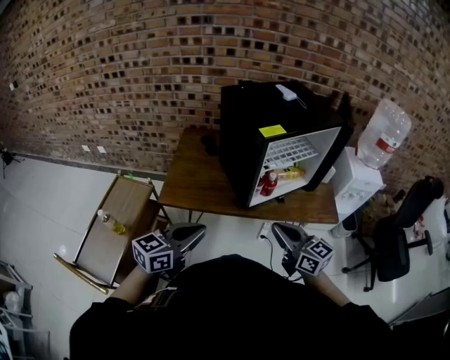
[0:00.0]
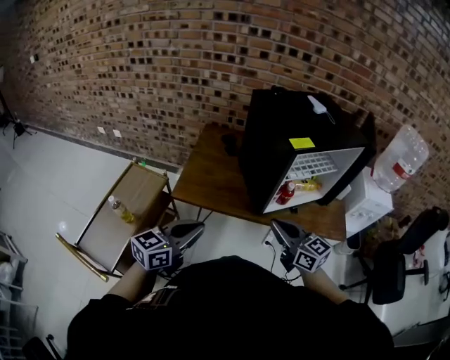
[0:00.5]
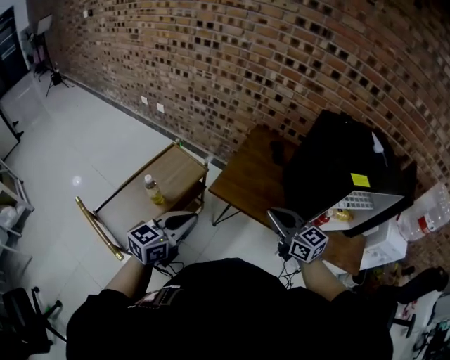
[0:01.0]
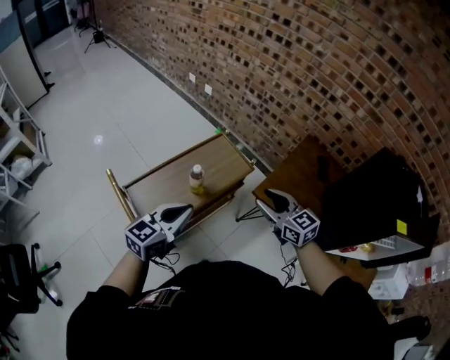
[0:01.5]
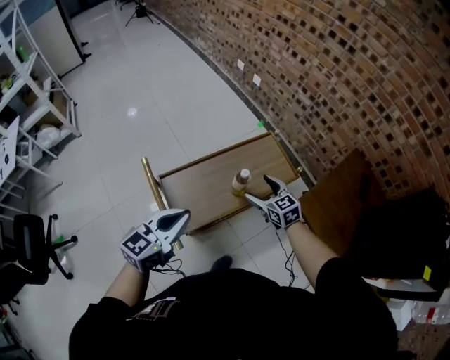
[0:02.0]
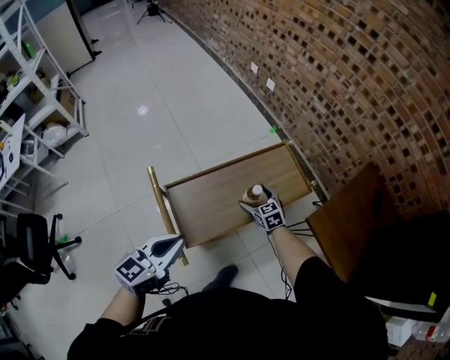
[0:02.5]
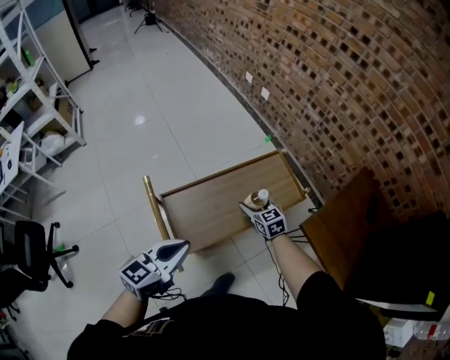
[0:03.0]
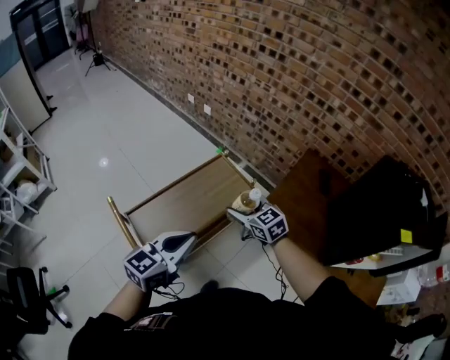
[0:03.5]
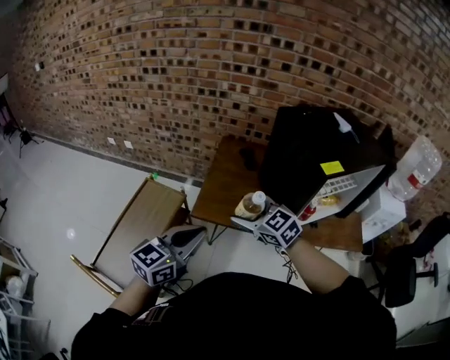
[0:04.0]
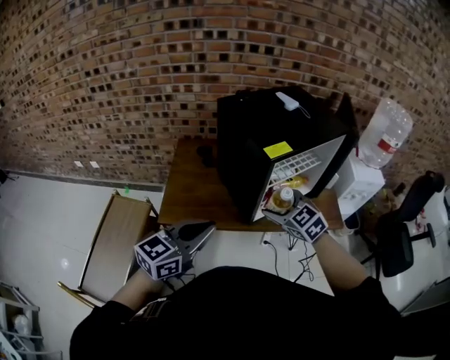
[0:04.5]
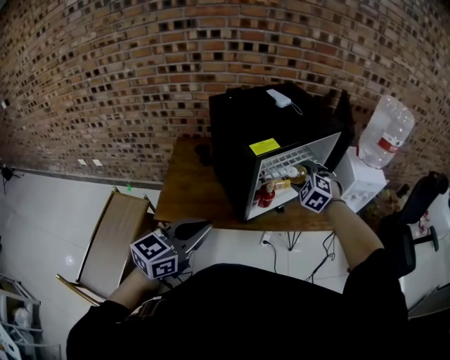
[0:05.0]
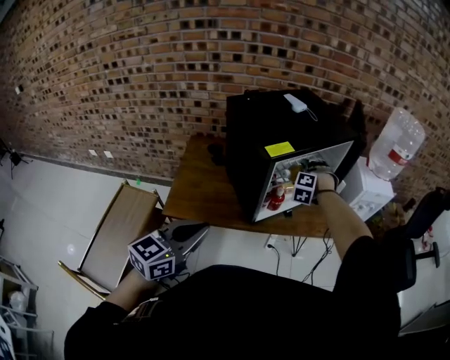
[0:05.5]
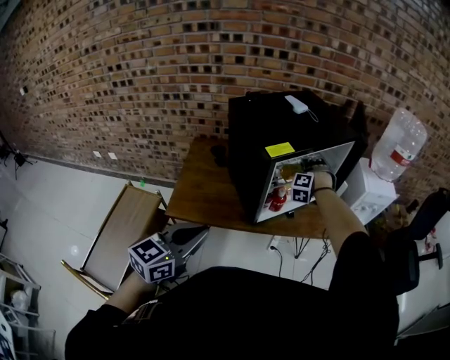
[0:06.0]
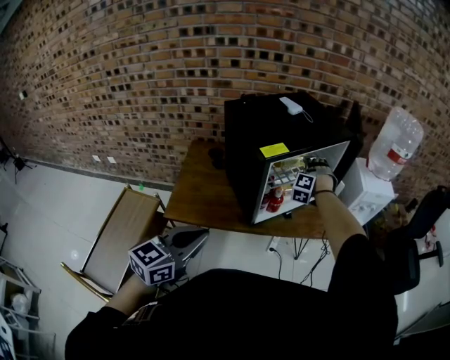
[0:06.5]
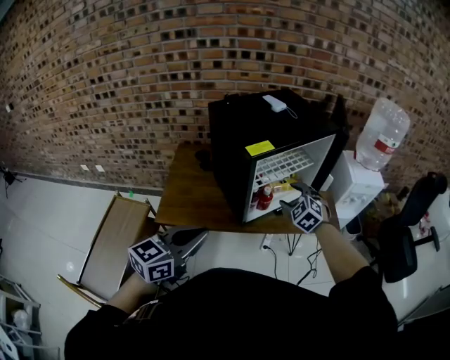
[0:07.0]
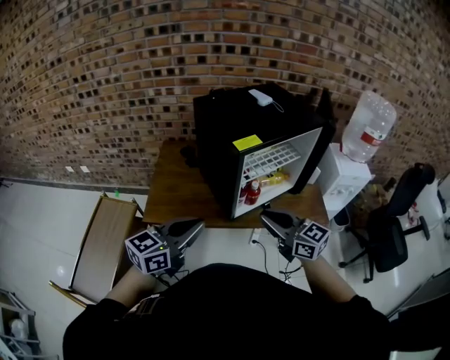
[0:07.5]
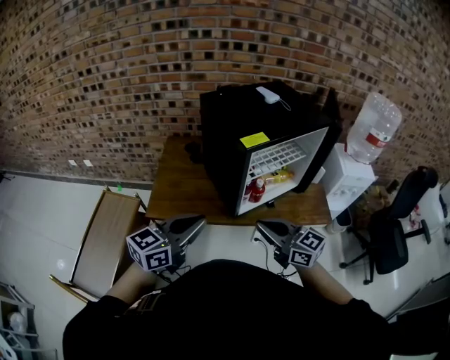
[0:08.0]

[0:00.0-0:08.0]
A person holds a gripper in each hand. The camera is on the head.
0:00.0 to 0:02.0: The two grippers travel together, some 60 cm. The left gripper swivels some 60 degrees; the right gripper swivels approximately 60 degrees, and opens.
0:02.0 to 0:04.0: Both grippers are carried roughly 40 cm. The left gripper changes its angle by roughly 50 degrees. Meanwhile the right gripper rotates approximately 30 degrees.
0:04.0 to 0:06.0: The left gripper shifts by approximately 20 cm, while the right gripper moves approximately 50 cm, and turns by about 90 degrees.
0:06.0 to 0:08.0: The right gripper shifts by roughly 35 cm, points its fingers about 40 degrees further upward, and closes.

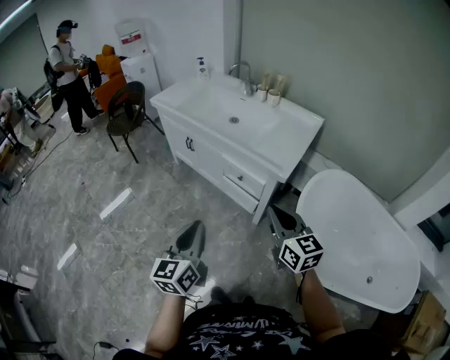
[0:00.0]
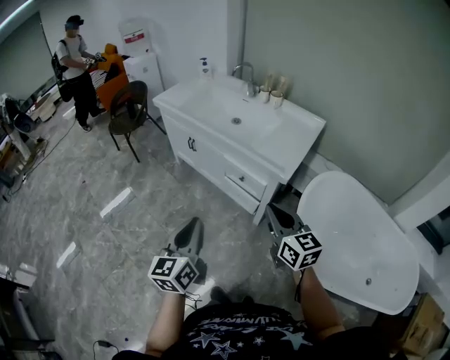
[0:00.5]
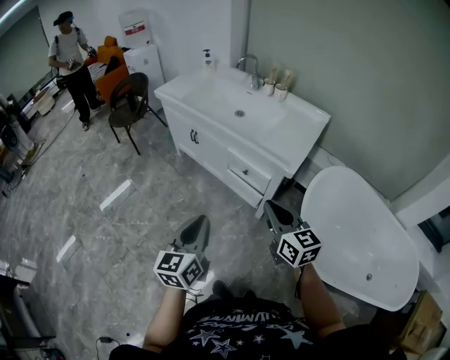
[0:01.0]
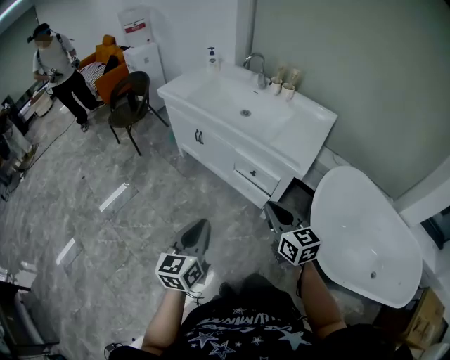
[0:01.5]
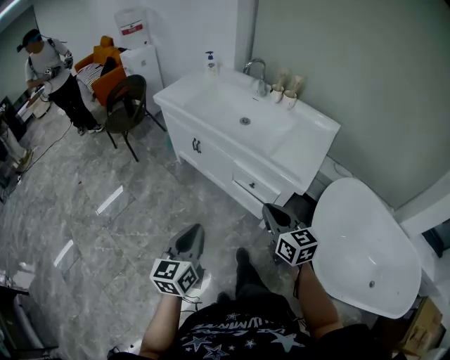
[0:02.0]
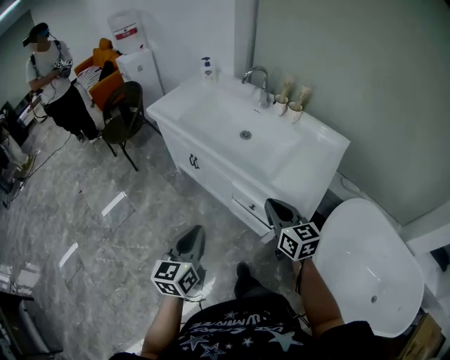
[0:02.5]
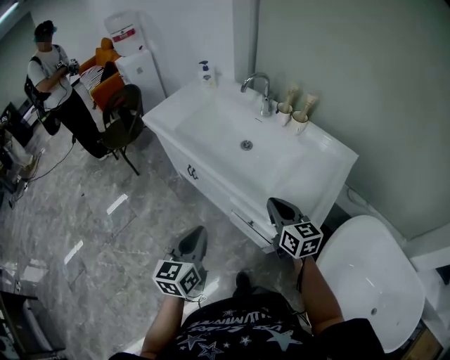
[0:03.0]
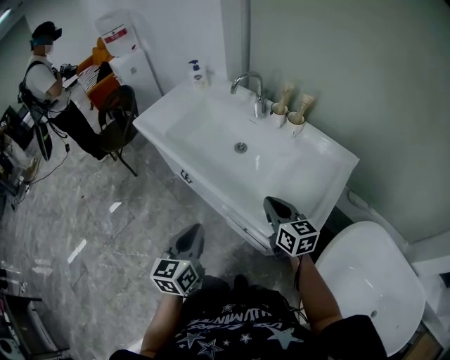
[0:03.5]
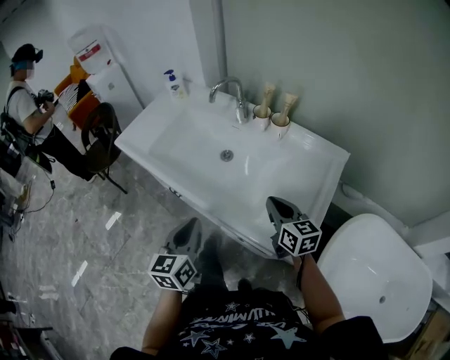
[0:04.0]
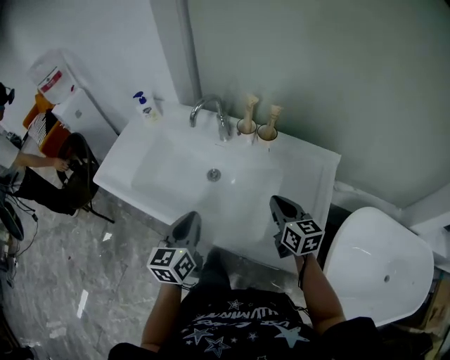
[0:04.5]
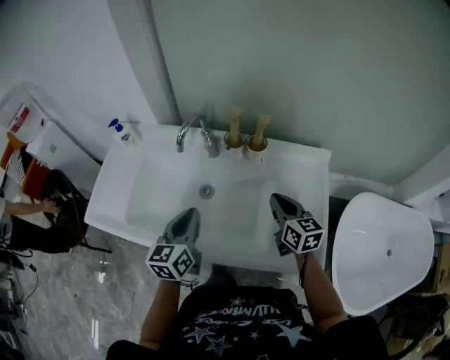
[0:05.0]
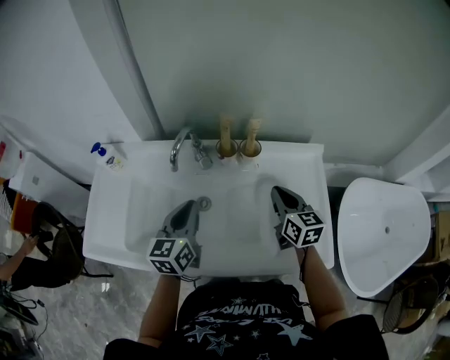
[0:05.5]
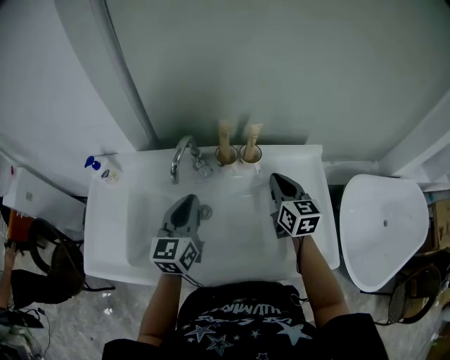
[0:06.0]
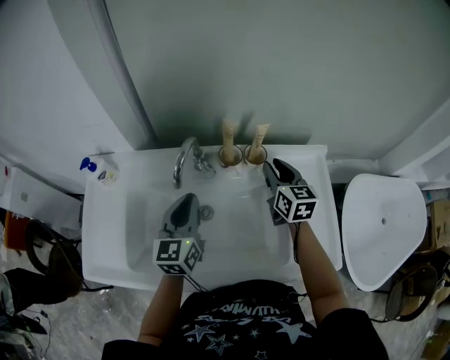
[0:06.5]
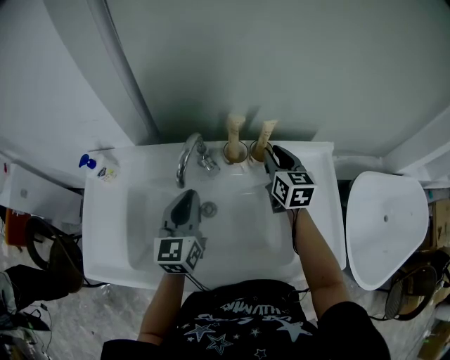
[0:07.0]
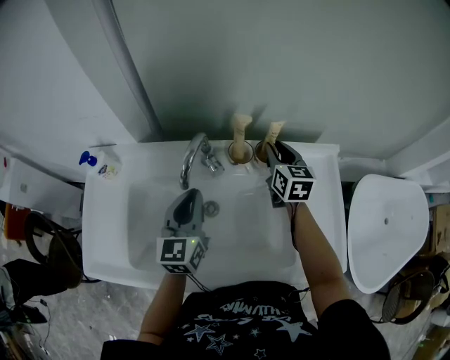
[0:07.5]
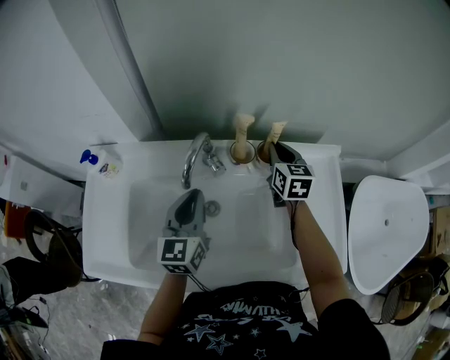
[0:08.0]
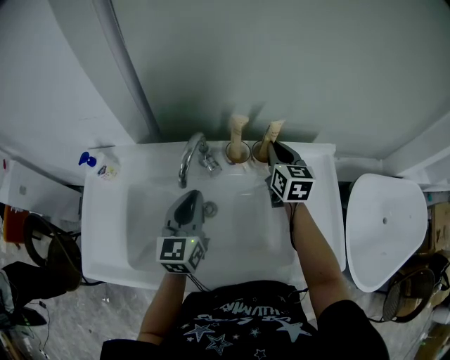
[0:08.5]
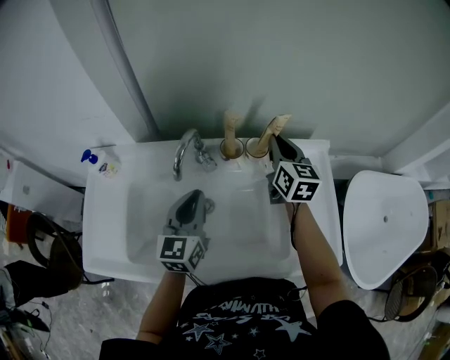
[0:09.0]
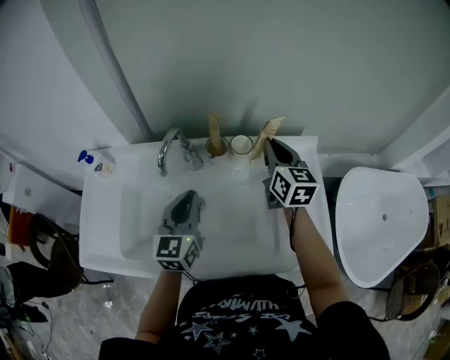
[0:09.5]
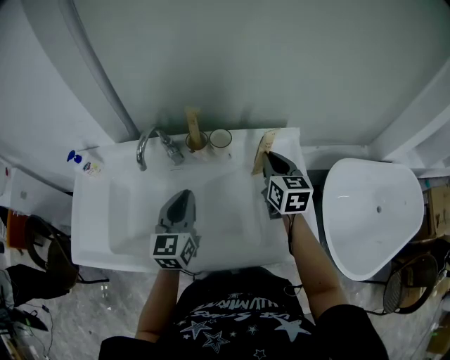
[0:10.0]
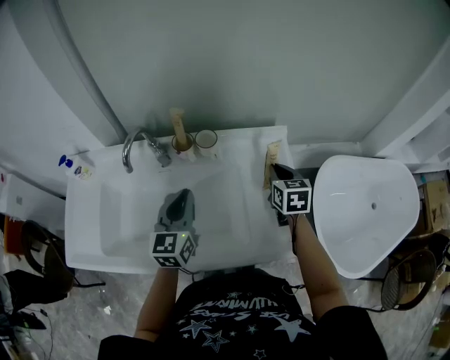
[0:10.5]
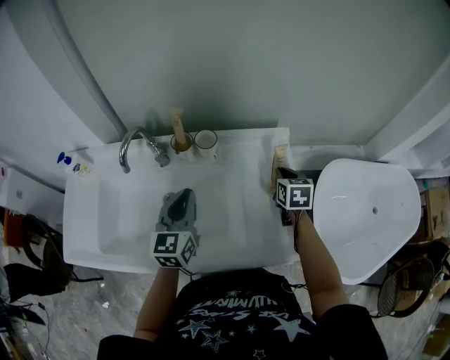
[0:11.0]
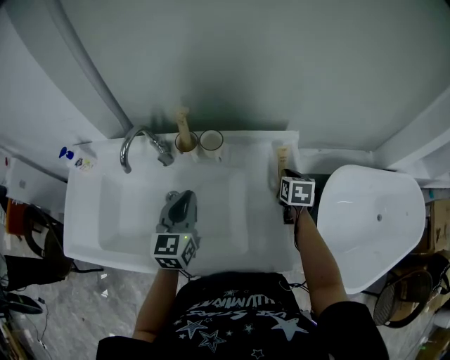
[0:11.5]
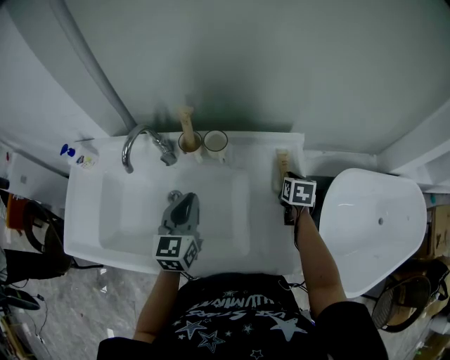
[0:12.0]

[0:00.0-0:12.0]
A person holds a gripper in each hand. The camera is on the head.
0:00.0 to 0:02.0: The right gripper heads forward, to the left and downward, covering about 15 cm. Meanwhile the left gripper travels forward and to the left by some 10 cm.
0:02.0 to 0:04.0: The left gripper heads forward, covering some 35 cm. The right gripper is displaced forward and to the right by some 35 cm.
0:04.0 to 0:06.0: The left gripper shifts by about 35 cm, and swivels about 40 degrees. Meanwhile the right gripper changes place by about 25 cm, and swivels some 40 degrees.
0:06.0 to 0:08.0: The left gripper changes place by some 5 cm. The right gripper shifts some 15 cm forward.
0:08.0 to 0:10.0: The right gripper heads to the right, backward and upward, covering about 20 cm; the left gripper travels to the right and backward by some 15 cm.
0:10.0 to 0:12.0: The right gripper heads downward and to the right, covering about 20 cm, and swivels about 30 degrees; the left gripper changes place by about 5 cm.

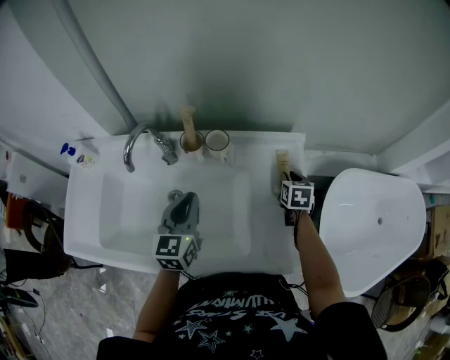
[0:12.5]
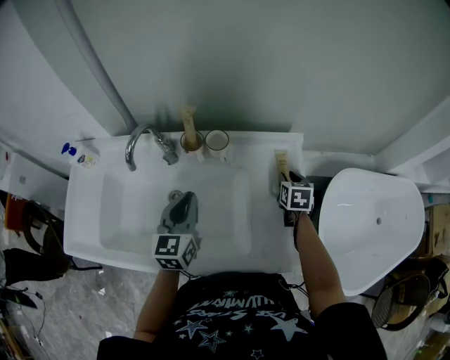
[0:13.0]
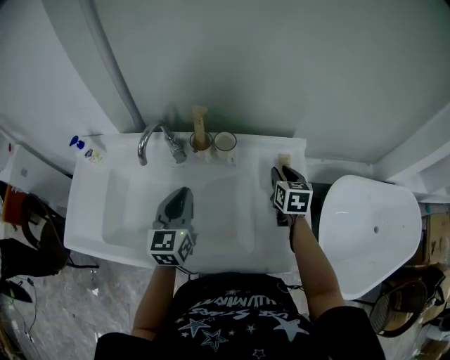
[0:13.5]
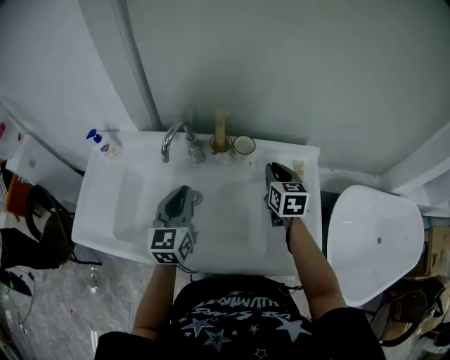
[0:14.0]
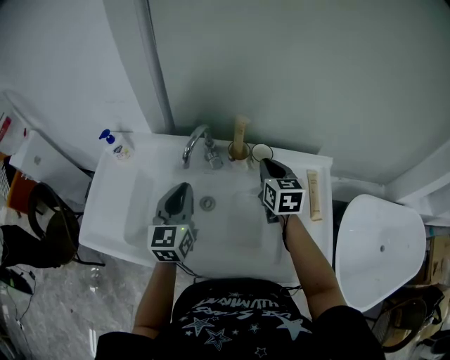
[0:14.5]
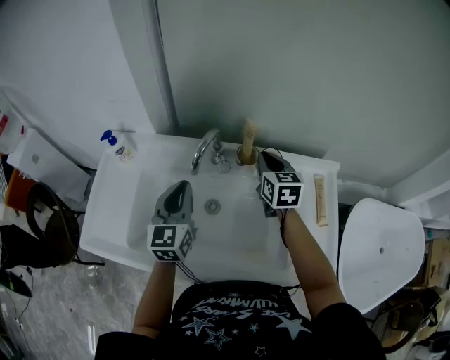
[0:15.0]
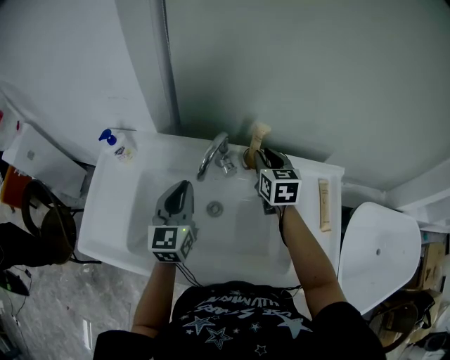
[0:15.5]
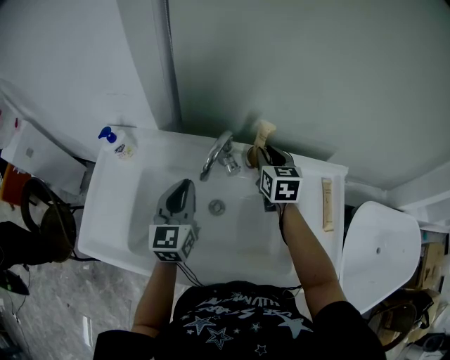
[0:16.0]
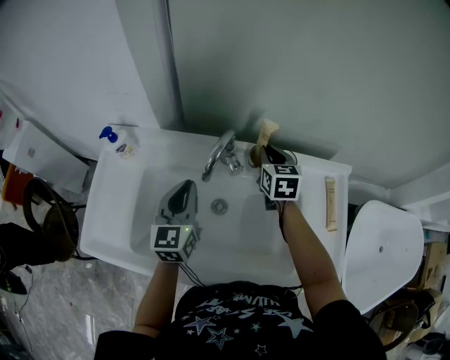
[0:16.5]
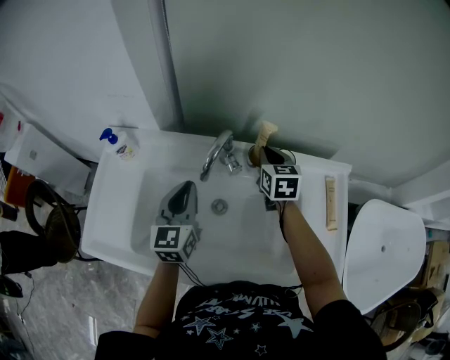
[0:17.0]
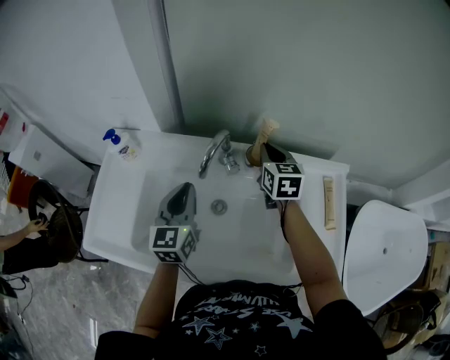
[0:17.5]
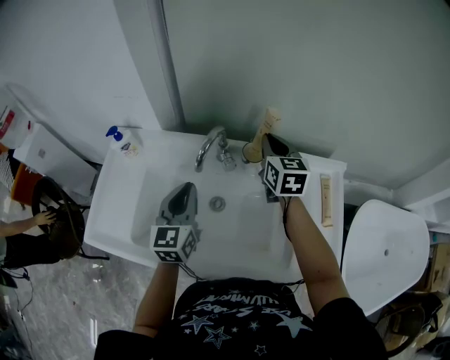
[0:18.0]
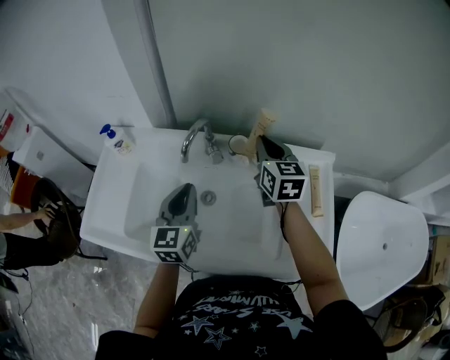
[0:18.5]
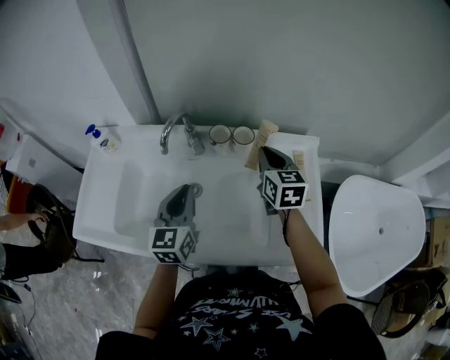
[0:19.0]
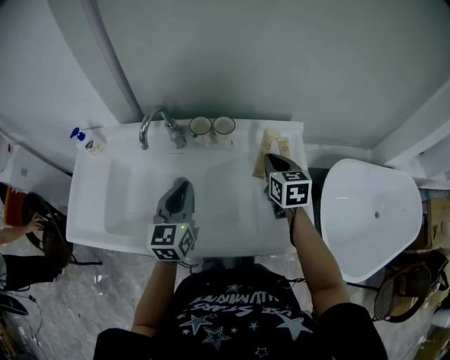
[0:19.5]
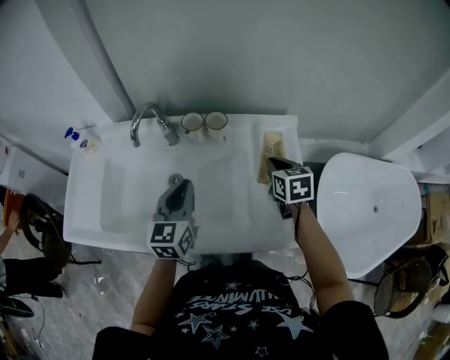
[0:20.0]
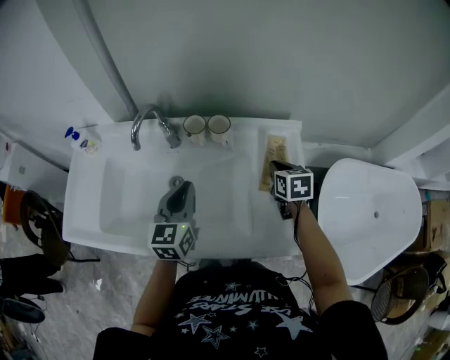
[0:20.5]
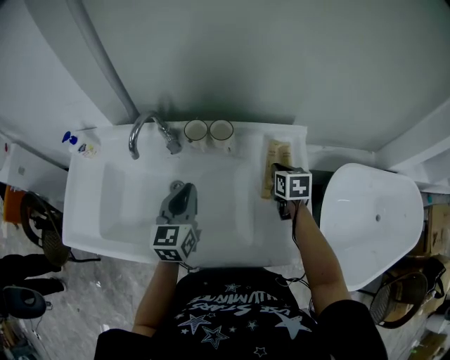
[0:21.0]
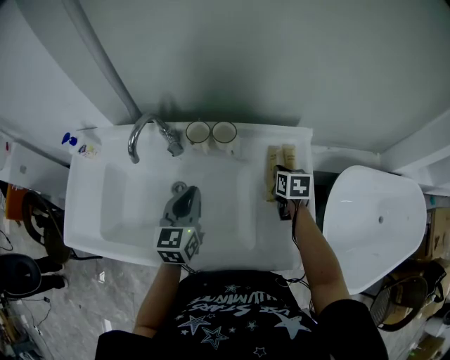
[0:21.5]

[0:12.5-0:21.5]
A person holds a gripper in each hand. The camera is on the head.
0:12.5 to 0:14.5: The left gripper heads to the left, covering about 15 cm. The right gripper moves to the left and upward, roughly 30 cm, and rotates some 30 degrees.
0:14.5 to 0:17.0: The left gripper is displaced forward by some 5 cm; the right gripper heads forward and to the left, covering some 10 cm.
0:17.0 to 0:19.5: Both grippers travel together to the right and backward, approximately 20 cm.
0:19.5 to 0:21.5: The left gripper ends up some 5 cm from where it was; the right gripper shifts approximately 15 cm downward, to the right and forward, and changes its angle by about 20 degrees.
